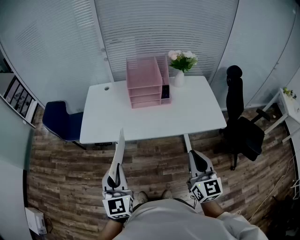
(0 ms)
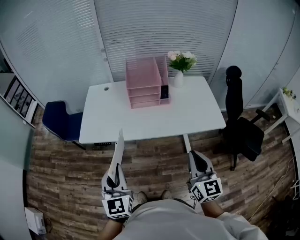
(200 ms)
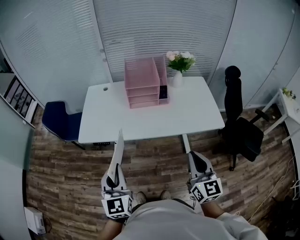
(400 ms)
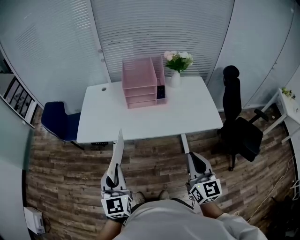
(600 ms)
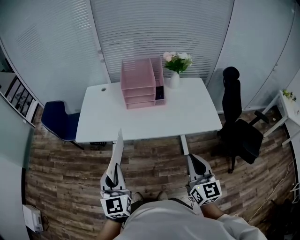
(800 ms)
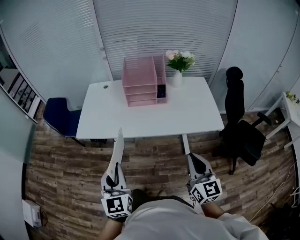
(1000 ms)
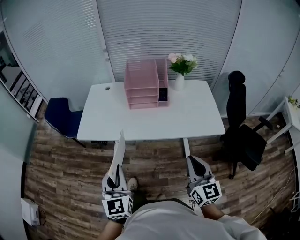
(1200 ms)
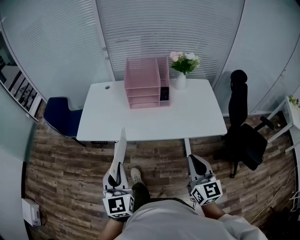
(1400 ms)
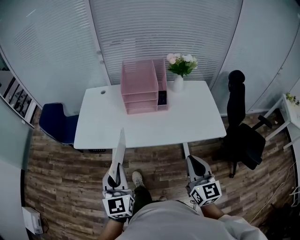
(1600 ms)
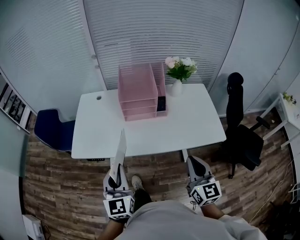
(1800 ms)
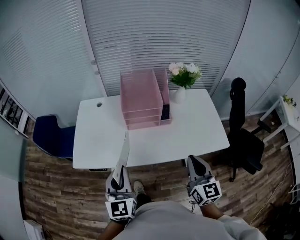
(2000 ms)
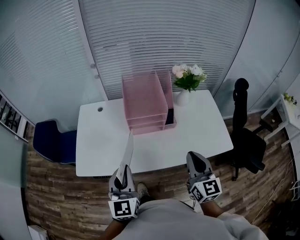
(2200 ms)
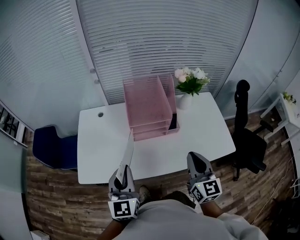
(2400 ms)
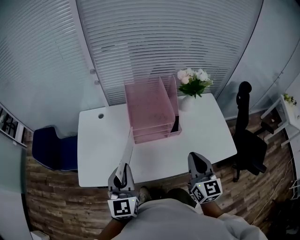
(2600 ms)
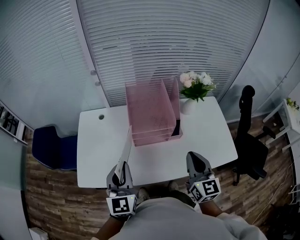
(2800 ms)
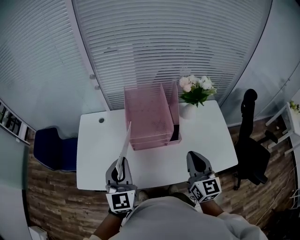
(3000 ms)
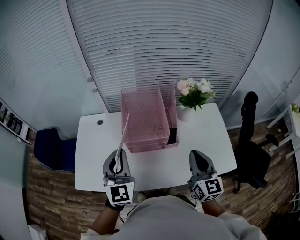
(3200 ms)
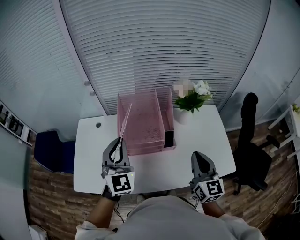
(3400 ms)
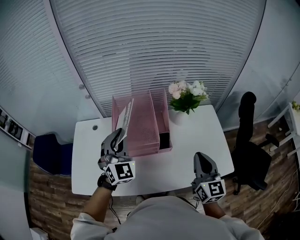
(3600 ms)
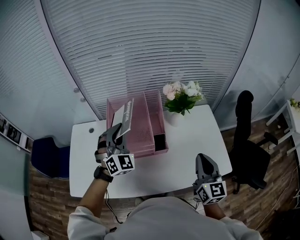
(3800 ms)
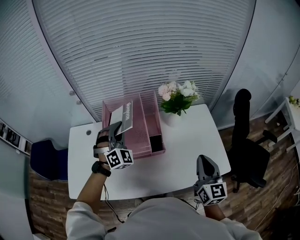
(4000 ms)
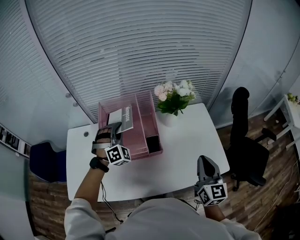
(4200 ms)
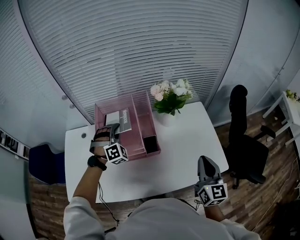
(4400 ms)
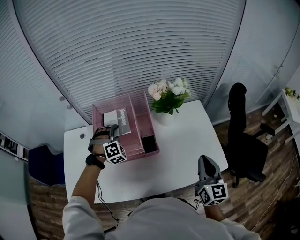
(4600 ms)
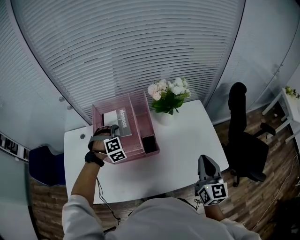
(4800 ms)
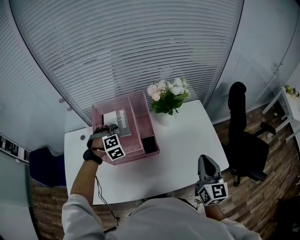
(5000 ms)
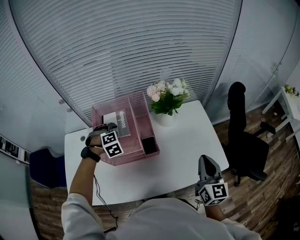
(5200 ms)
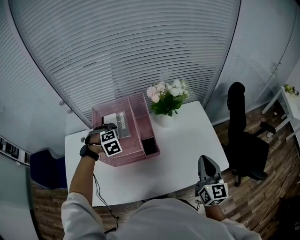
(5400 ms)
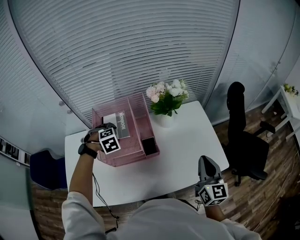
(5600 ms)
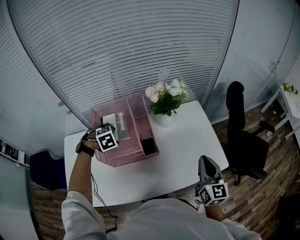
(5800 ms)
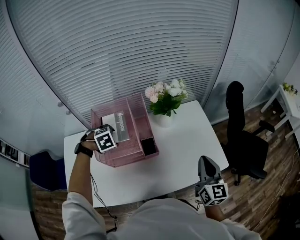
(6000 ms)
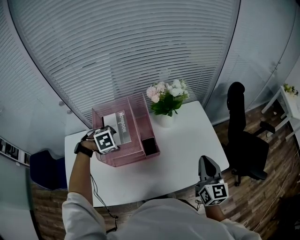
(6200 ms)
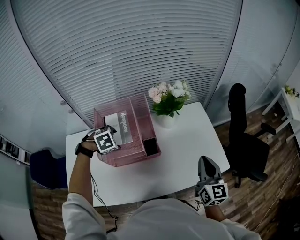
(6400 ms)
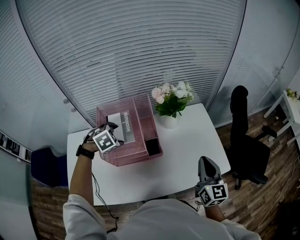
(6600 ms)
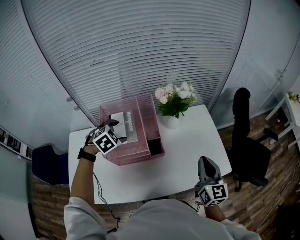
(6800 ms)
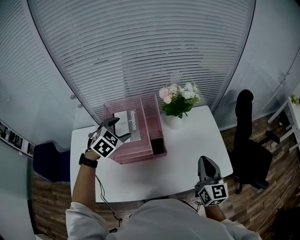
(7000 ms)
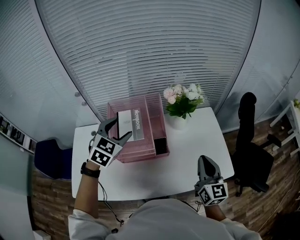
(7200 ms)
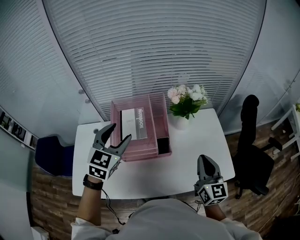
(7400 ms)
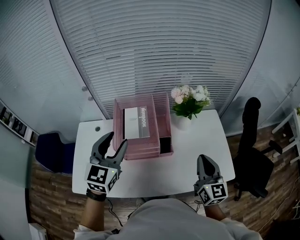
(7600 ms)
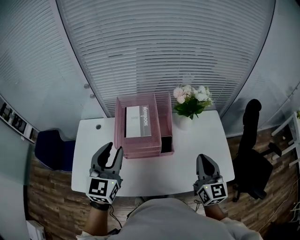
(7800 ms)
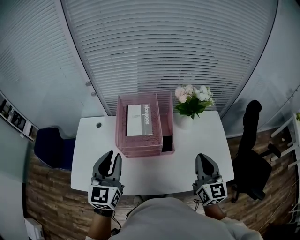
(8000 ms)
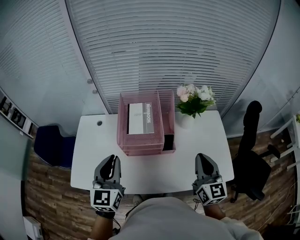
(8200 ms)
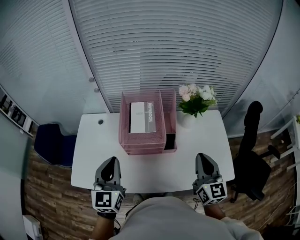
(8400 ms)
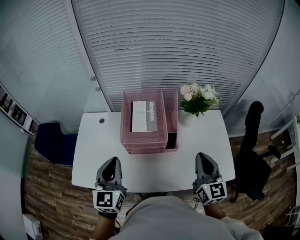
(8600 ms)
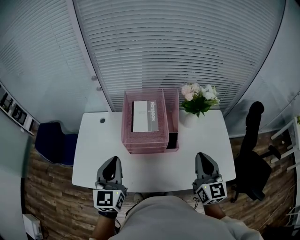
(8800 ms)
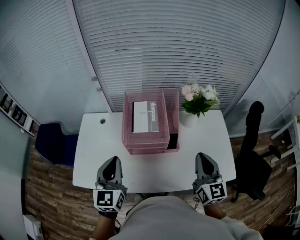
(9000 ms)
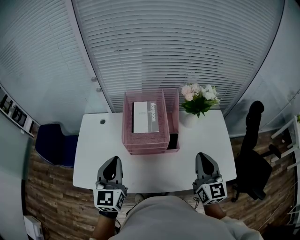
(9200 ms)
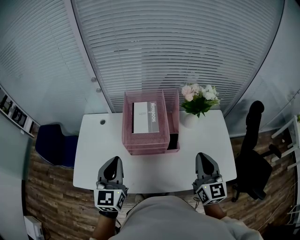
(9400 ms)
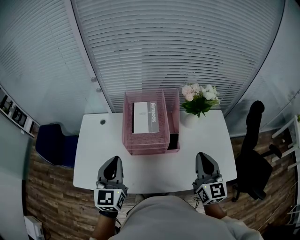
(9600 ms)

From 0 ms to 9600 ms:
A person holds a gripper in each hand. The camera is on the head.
From 0 ms to 1600 ms: The left gripper shifts roughly 5 cm to the right and forward. The right gripper shifts by approximately 5 cm.
From 1600 ms to 3200 ms: Both grippers travel together forward, some 35 cm.
From 3200 ms to 4800 ms: The left gripper shifts some 30 cm forward, downward and to the right, and rolls clockwise, seen from behind, by some 70 degrees; the right gripper goes approximately 15 cm to the right.
From 4800 ms to 6400 ms: The left gripper points its fingers roughly 30 degrees further downward, and opens.
From 6400 ms to 8000 ms: The right gripper moves some 10 cm. Meanwhile the left gripper changes place by some 25 cm, points its fingers about 70 degrees further upward, and closes up.
From 8000 ms to 9600 ms: The grippers move only a little.

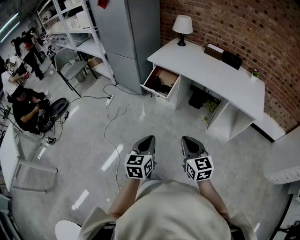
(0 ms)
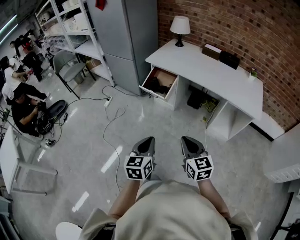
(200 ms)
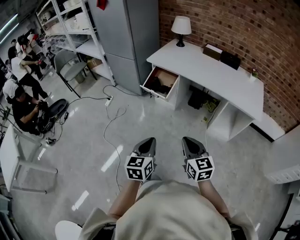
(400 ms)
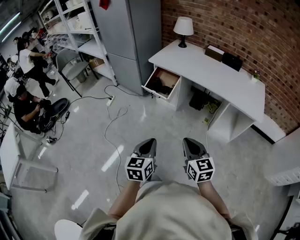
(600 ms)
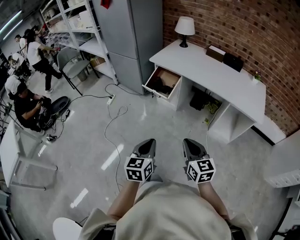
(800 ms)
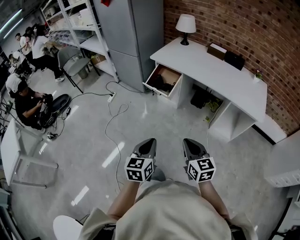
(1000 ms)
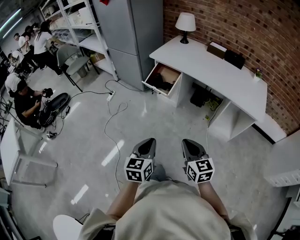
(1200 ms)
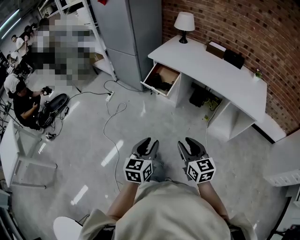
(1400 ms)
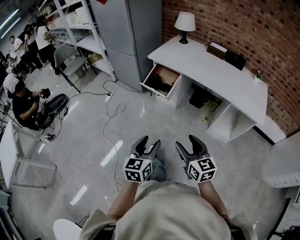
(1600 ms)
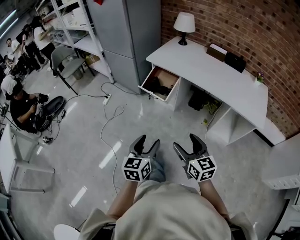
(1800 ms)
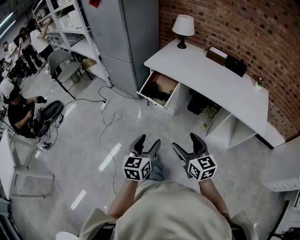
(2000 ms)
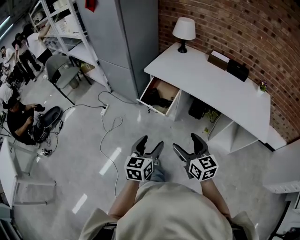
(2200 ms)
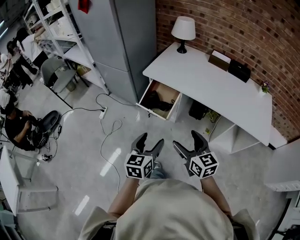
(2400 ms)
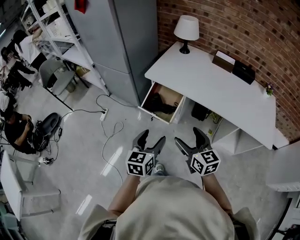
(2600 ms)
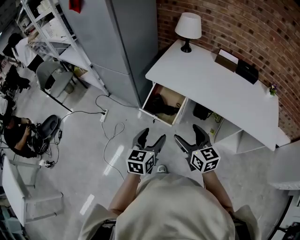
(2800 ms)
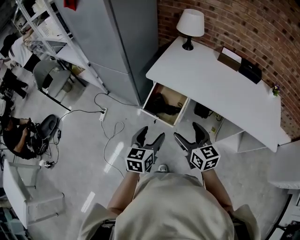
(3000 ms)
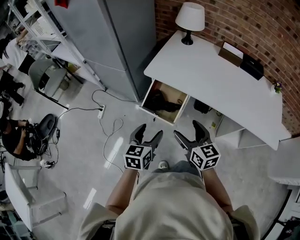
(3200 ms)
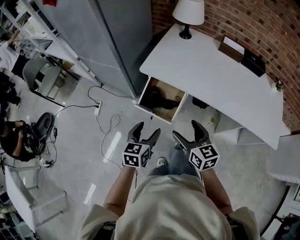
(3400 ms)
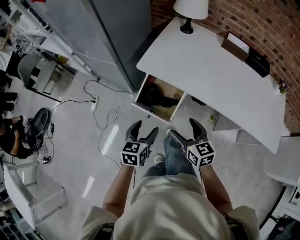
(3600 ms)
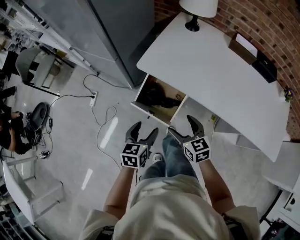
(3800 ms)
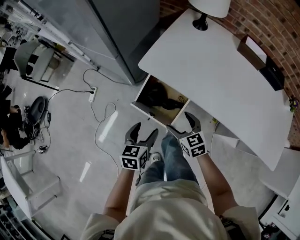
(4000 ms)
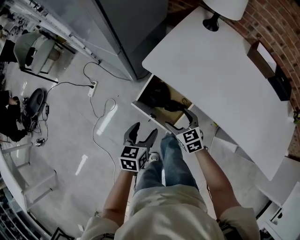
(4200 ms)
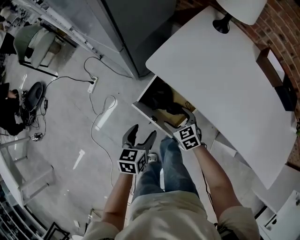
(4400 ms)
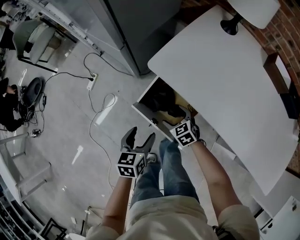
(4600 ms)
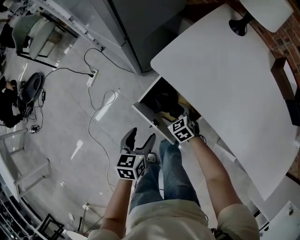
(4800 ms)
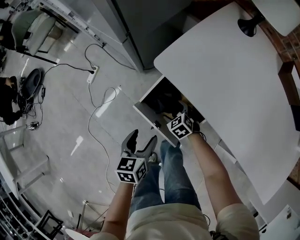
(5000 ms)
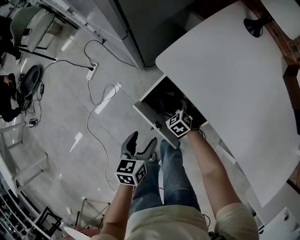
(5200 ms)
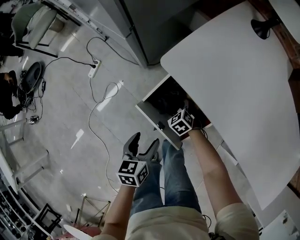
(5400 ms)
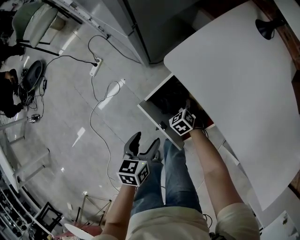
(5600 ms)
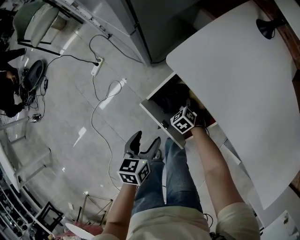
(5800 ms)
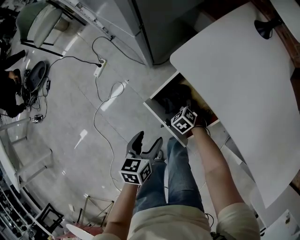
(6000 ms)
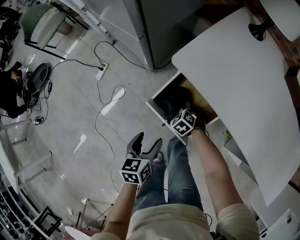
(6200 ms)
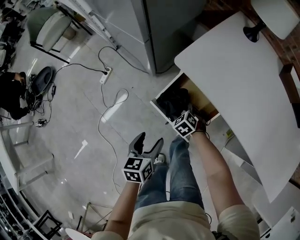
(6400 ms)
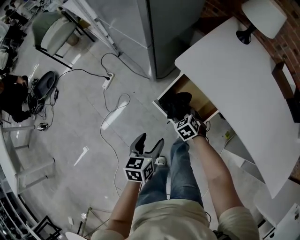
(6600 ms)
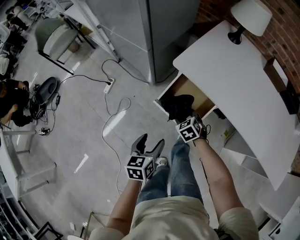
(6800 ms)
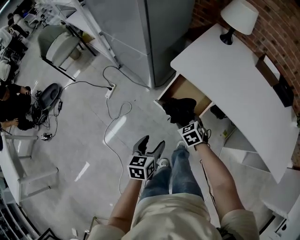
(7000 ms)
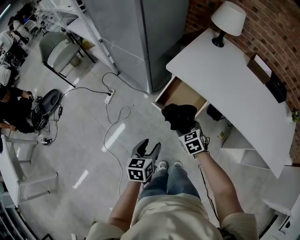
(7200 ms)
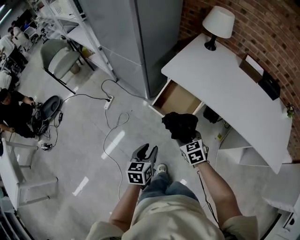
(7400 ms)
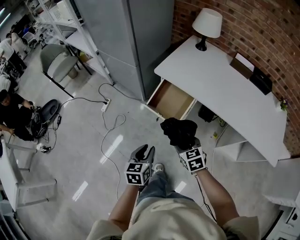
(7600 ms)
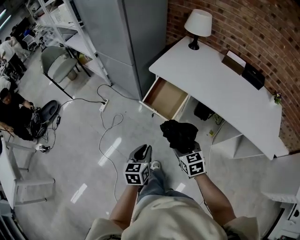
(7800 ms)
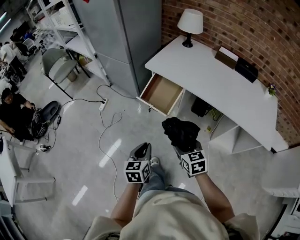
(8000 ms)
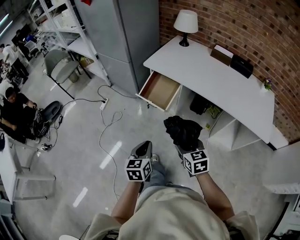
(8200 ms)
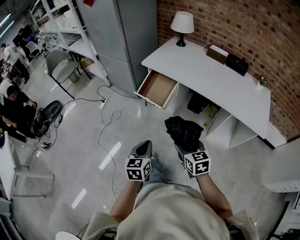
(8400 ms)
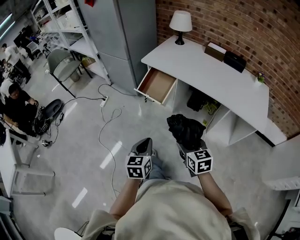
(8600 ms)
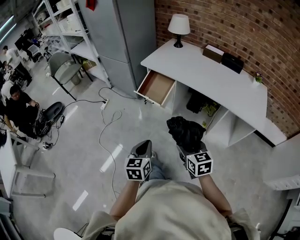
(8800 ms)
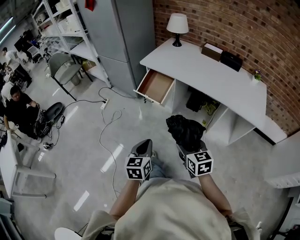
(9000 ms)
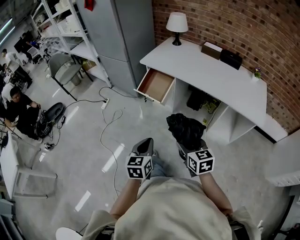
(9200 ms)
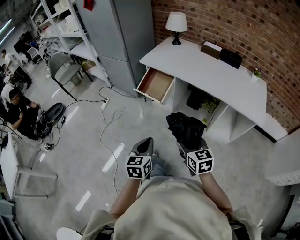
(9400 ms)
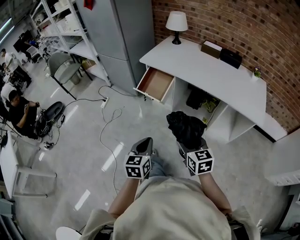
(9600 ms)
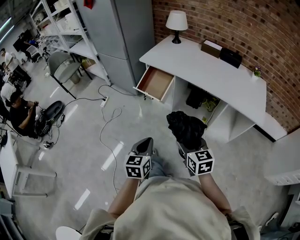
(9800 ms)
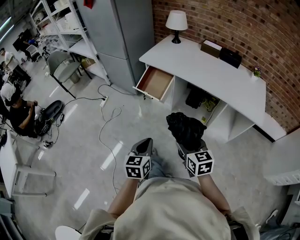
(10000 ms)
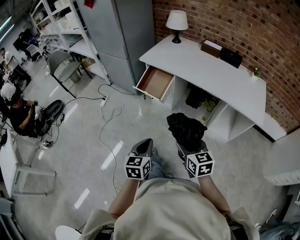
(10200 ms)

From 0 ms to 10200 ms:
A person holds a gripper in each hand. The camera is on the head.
From 0 ms to 1400 ms: The right gripper opens its fingers.
From 1400 ms to 3000 ms: The pair of grippers is taken forward, some 40 cm. The right gripper opens up. Meanwhile the left gripper opens its fingers.
From 3000 ms to 4400 ms: The grippers both shift downward and forward by roughly 30 cm. The right gripper rotates about 40 degrees. Meanwhile the left gripper turns by approximately 20 degrees.
From 4400 ms to 5800 ms: The right gripper heads downward, covering roughly 20 cm, and turns by approximately 30 degrees; the left gripper heads downward, covering approximately 10 cm.
From 5800 ms to 7200 ms: The left gripper moves upward and backward, some 20 cm; the right gripper travels upward and backward by about 35 cm, and turns by some 30 degrees.
From 7200 ms to 8800 ms: Both grippers travel together backward, approximately 40 cm. The right gripper turns by about 30 degrees; the left gripper closes its fingers.
From 8800 ms to 10200 ms: The grippers move only a little.

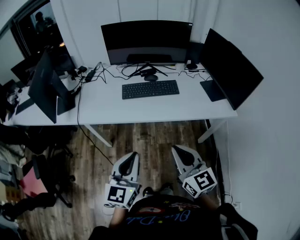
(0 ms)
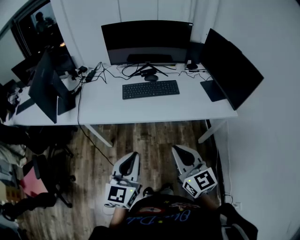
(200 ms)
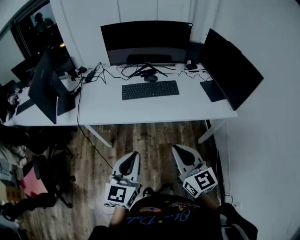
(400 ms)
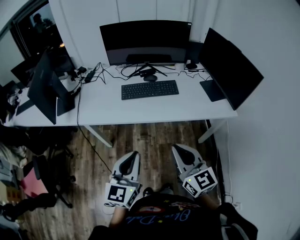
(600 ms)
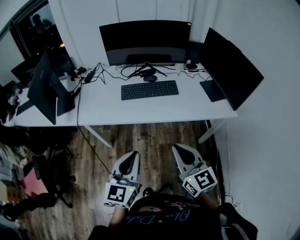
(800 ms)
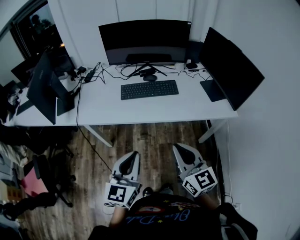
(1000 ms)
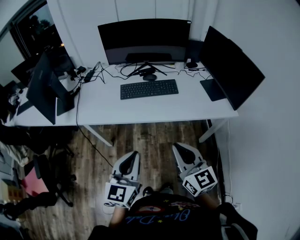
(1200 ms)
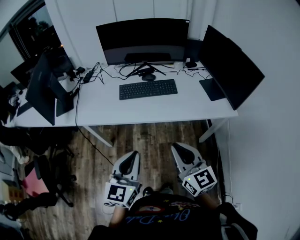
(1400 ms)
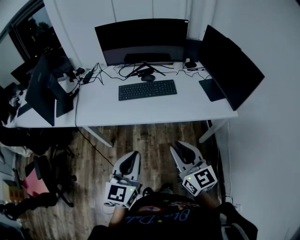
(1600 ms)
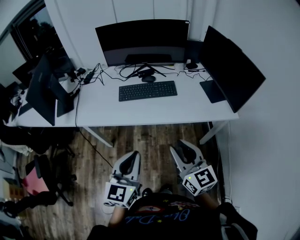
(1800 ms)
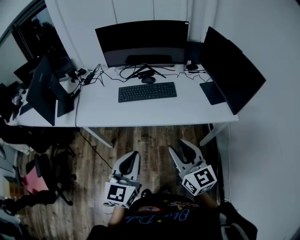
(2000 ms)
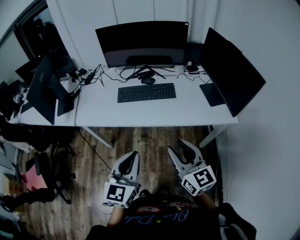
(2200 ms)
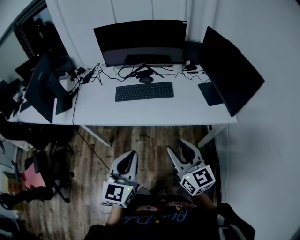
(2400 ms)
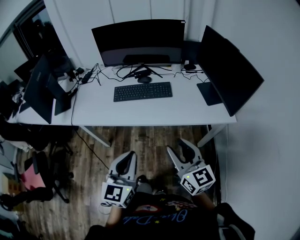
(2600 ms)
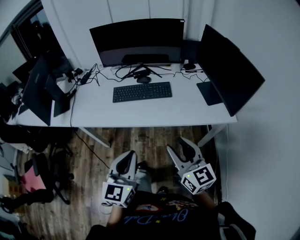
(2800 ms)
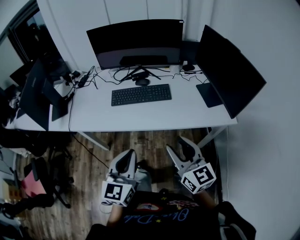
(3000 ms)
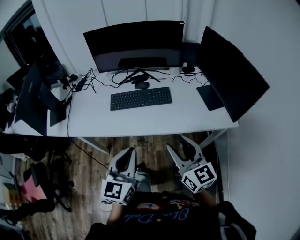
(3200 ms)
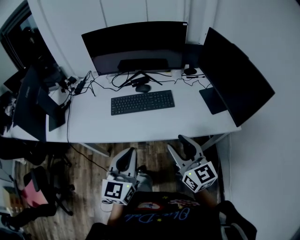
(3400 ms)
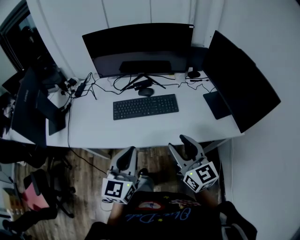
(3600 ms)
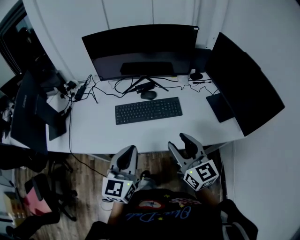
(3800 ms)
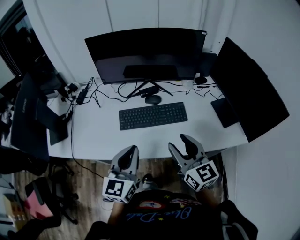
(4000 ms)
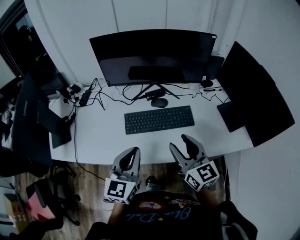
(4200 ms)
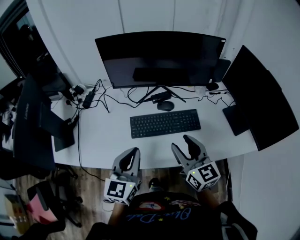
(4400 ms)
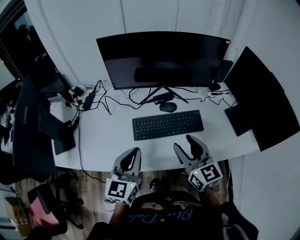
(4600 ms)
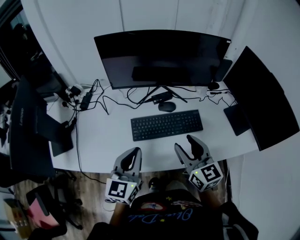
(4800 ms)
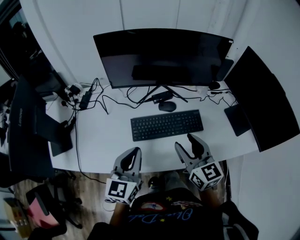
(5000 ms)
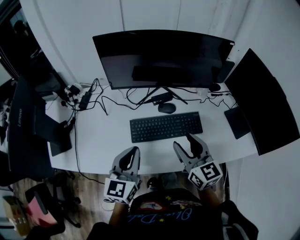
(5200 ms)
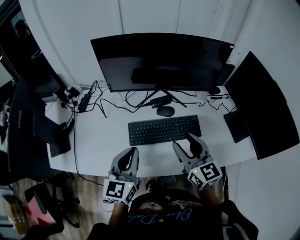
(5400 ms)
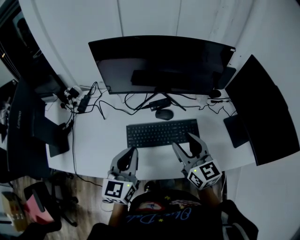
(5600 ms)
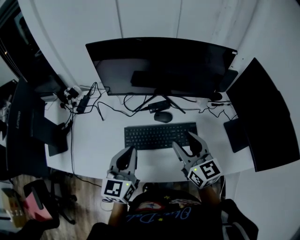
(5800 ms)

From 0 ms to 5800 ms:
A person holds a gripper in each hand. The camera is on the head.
From 0 ms to 1400 ms: The grippers move only a little.
From 1400 ms to 2800 ms: The two grippers go about 5 cm to the right. The right gripper opens its fingers.
From 2800 ms to 4400 ms: Both grippers move forward and to the left, about 30 cm.
From 4400 ms to 5800 ms: The two grippers go approximately 10 cm forward.
